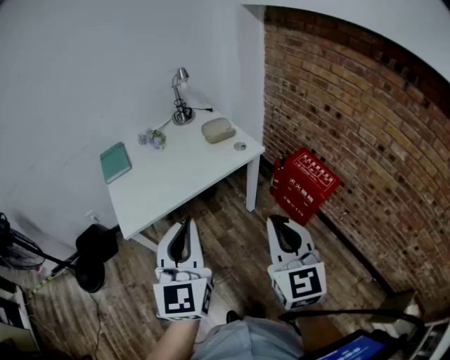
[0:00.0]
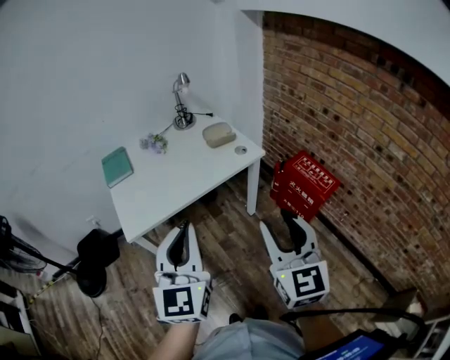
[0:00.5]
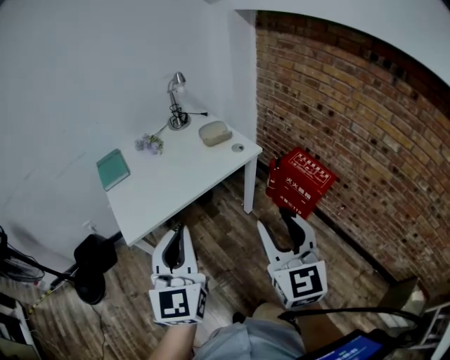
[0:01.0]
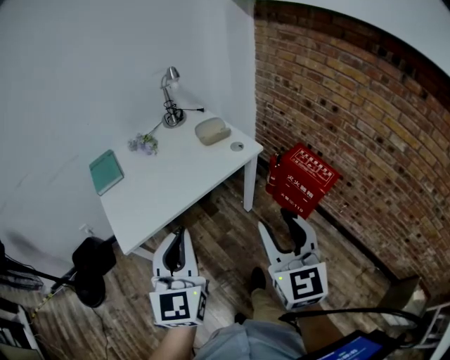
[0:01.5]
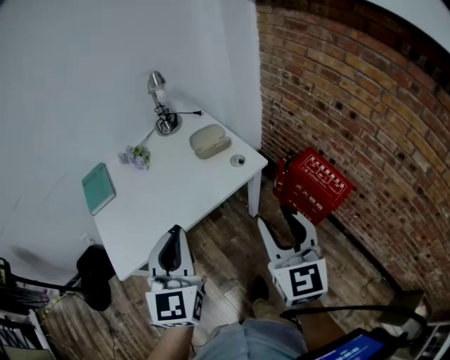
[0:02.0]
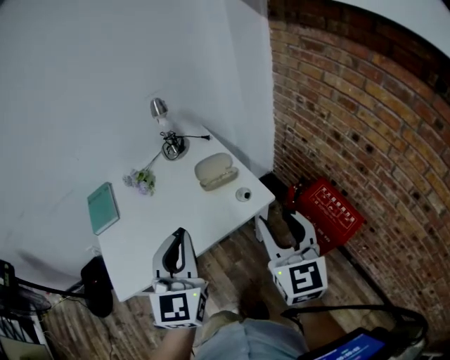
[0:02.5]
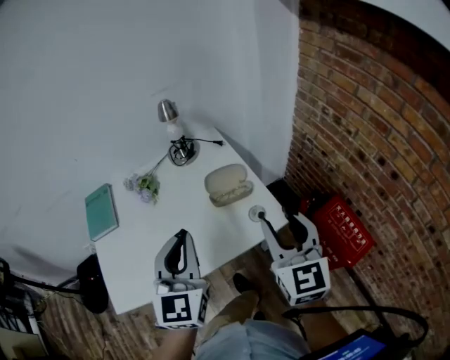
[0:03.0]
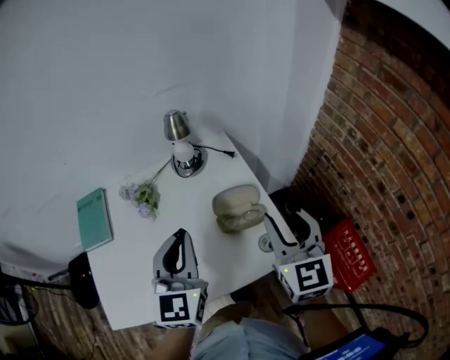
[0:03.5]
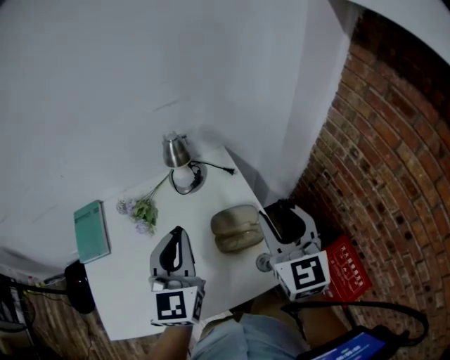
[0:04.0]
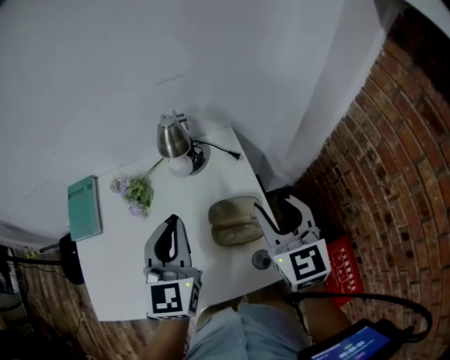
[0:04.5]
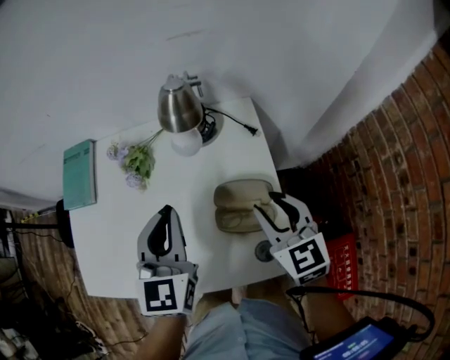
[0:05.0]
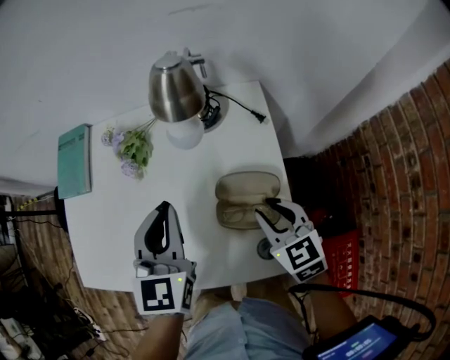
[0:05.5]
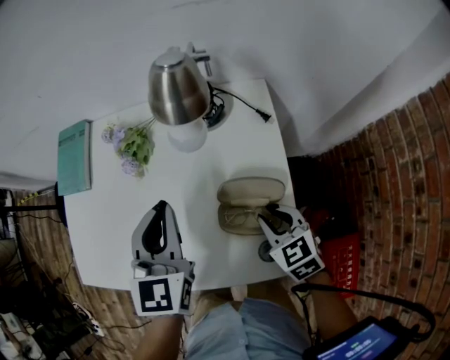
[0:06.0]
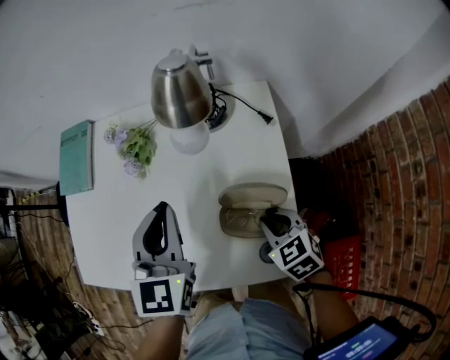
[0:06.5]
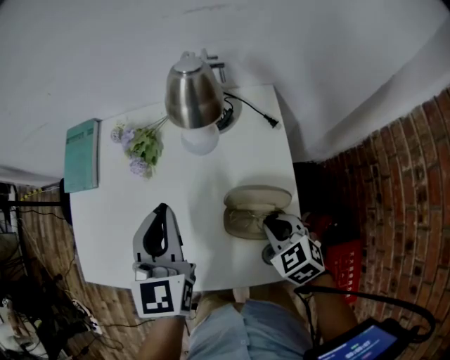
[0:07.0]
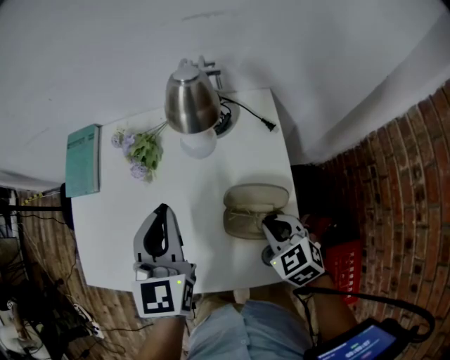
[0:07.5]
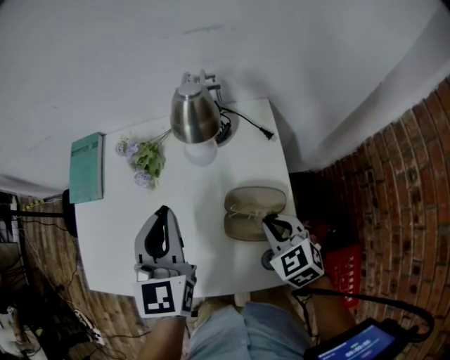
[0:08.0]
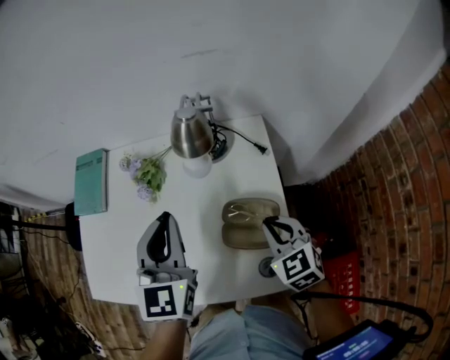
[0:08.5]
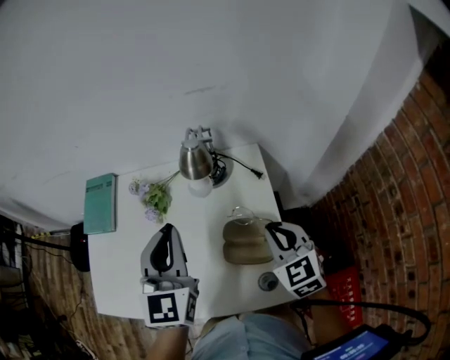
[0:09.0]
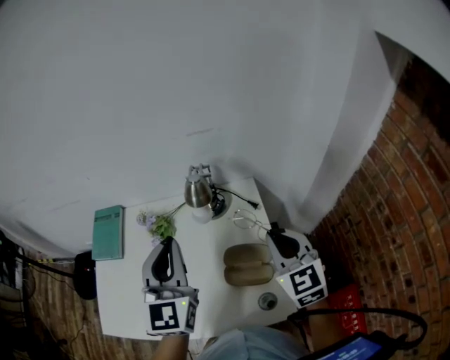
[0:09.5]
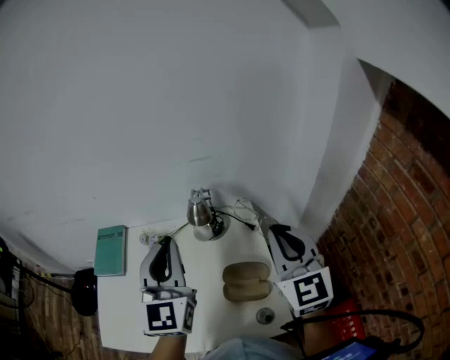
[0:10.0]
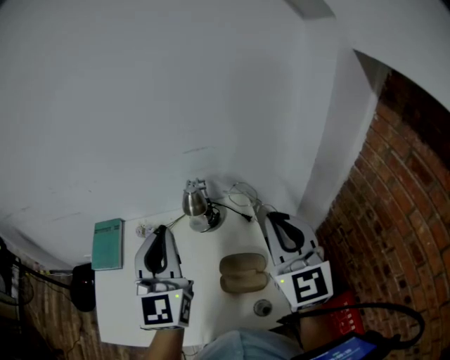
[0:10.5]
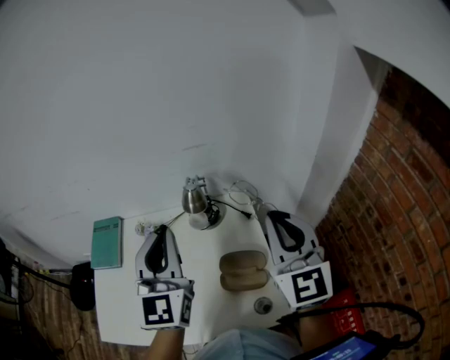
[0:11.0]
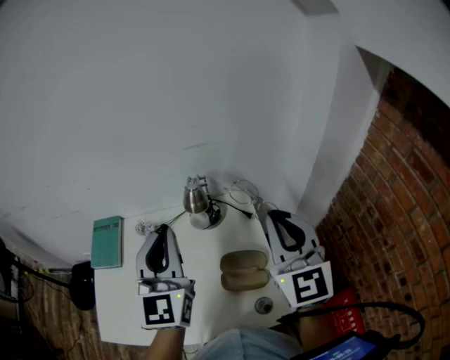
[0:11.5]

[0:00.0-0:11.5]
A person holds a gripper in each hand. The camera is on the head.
0.0 to 2.0 s: The grippers both shift forward by some 20 cm. The right gripper opens up.
2.0 to 4.0 s: Both grippers move forward, roughly 40 cm.
4.0 to 6.0 s: The right gripper travels downward by about 25 cm, angles its fingers downward, by approximately 40 degrees, and closes its fingers. The left gripper heads downward, covering some 10 cm, and swivels approximately 20 degrees.
6.0 to 7.5 s: The grippers stay close to where they were, moving slightly.
7.5 to 9.5 s: The right gripper shifts approximately 20 cm upward, and tilts its fingers about 30 degrees upward. The left gripper moves upward, approximately 15 cm.
9.5 to 11.5 s: The right gripper is displaced upward by roughly 15 cm, and turns by about 20 degrees, while the left gripper is displaced upward by some 5 cm.

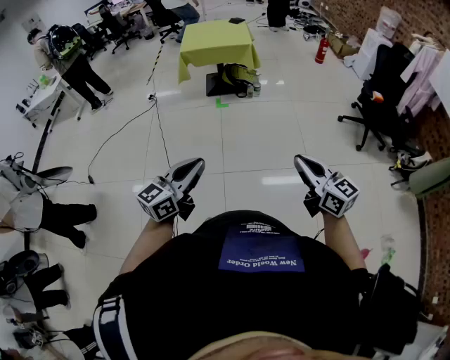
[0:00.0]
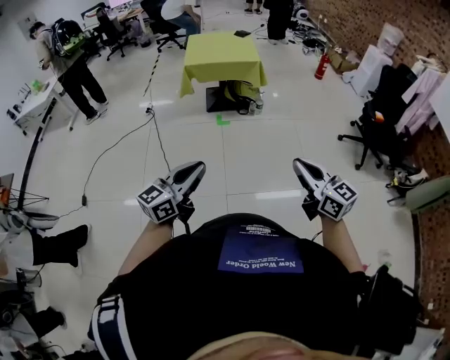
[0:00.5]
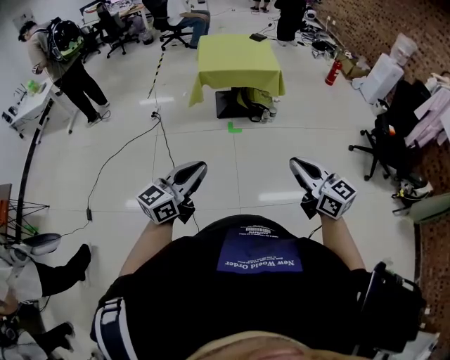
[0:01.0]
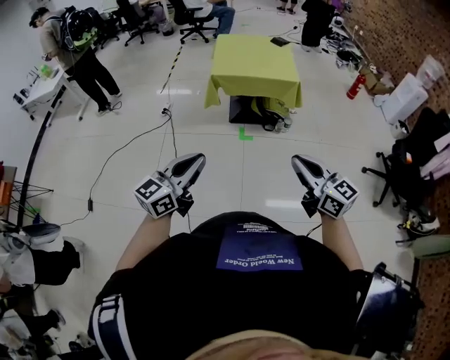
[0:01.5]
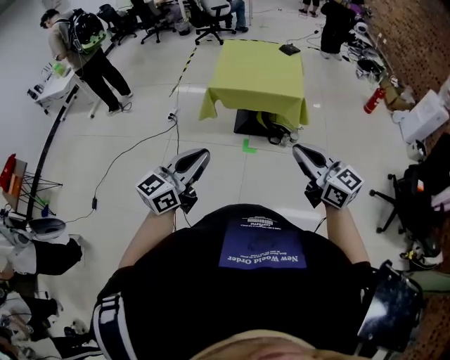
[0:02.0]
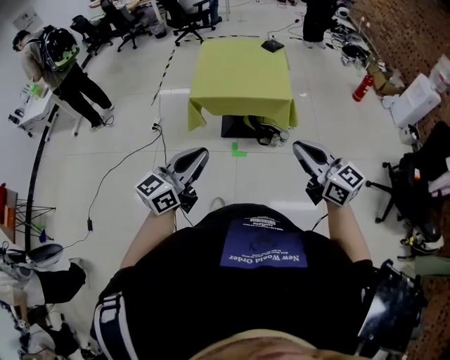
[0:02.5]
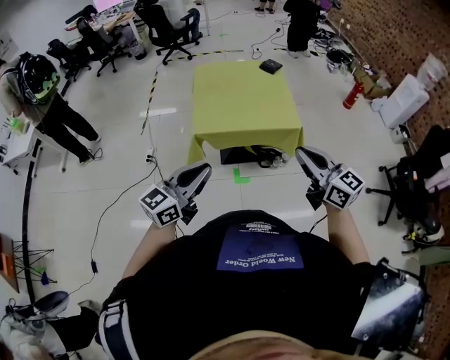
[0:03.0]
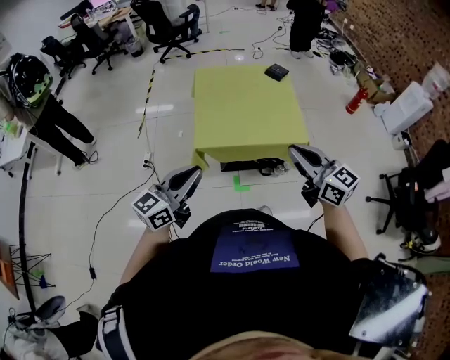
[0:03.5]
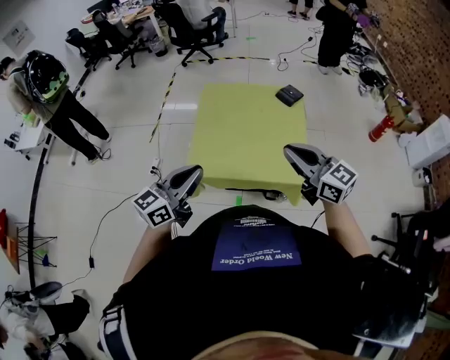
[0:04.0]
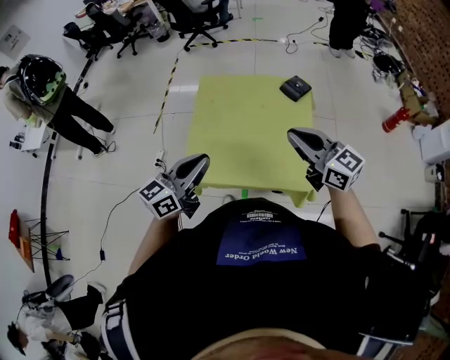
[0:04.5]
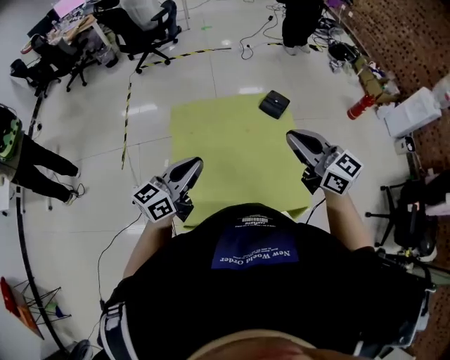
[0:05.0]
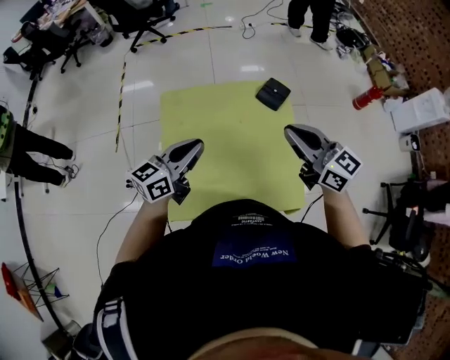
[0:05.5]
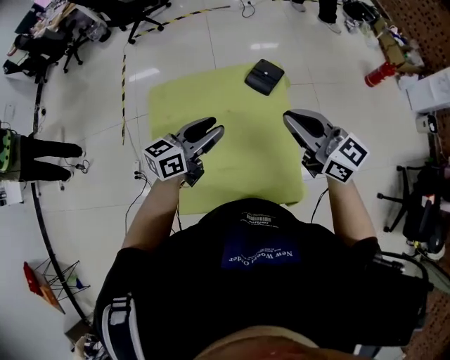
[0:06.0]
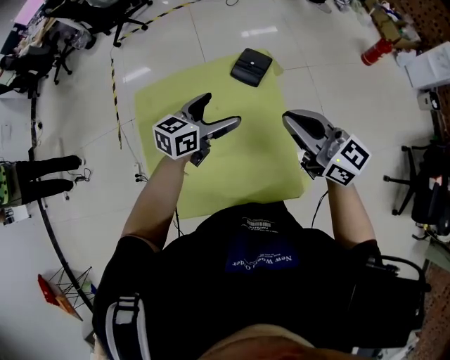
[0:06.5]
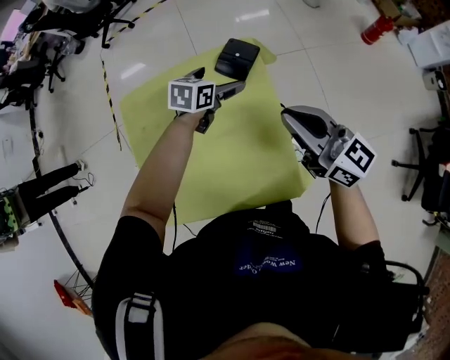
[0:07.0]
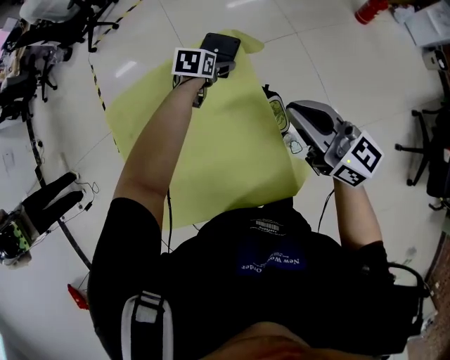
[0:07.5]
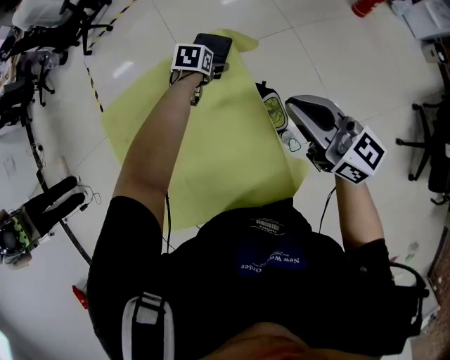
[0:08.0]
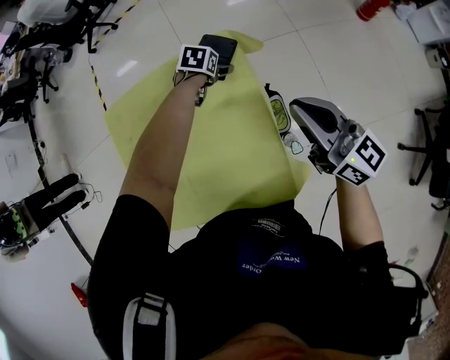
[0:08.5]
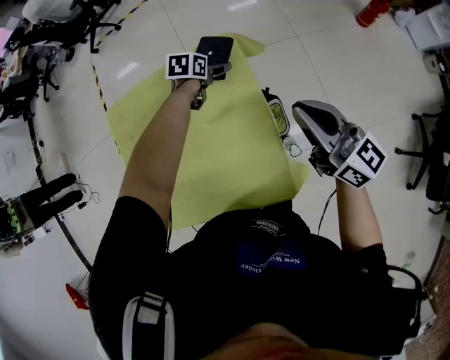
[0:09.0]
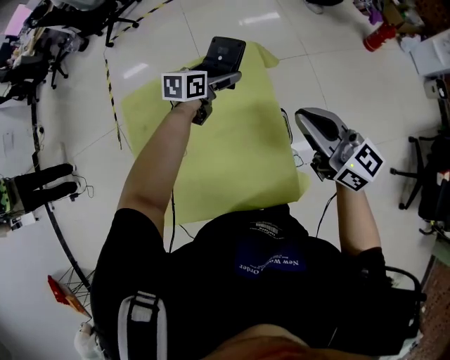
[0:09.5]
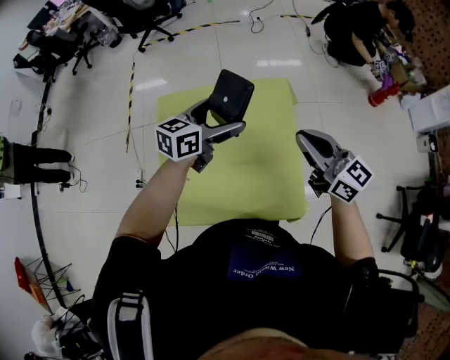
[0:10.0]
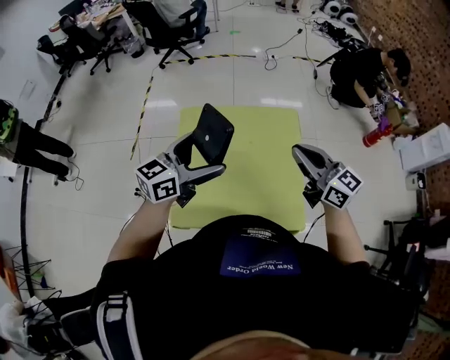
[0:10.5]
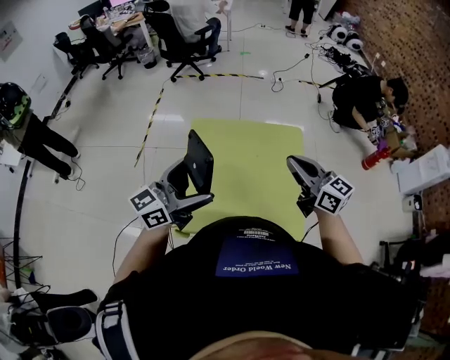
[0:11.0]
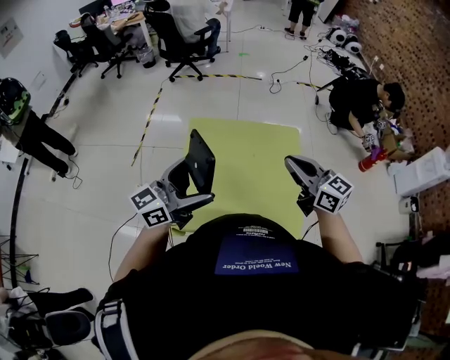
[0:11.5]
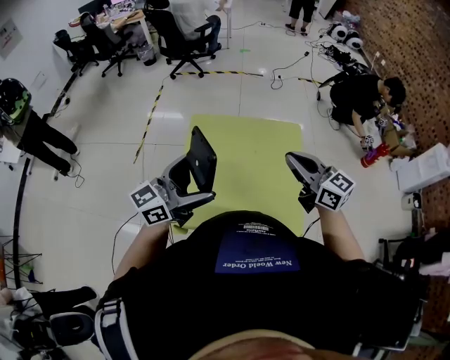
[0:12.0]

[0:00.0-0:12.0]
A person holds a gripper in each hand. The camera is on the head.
0.0 to 2.0 s: The pair of grippers is taken forward, about 60 cm.
2.0 to 4.0 s: The pair of grippers is taken forward, some 50 cm.
4.0 to 6.0 s: The two grippers go about 35 cm forward. The left gripper swivels some 20 degrees.
6.0 to 8.0 s: The right gripper is displaced to the right and downward by roughly 20 cm. Meanwhile the left gripper shifts roughly 40 cm downward, forward and to the right, angles its fingers downward, by some 60 degrees, and opens up.
8.0 to 10.0 s: The left gripper moves upward, backward and to the left, approximately 35 cm, and tips its fingers upward by some 50 degrees. The right gripper goes roughly 15 cm to the left and upward.
10.0 to 12.0 s: The left gripper goes about 35 cm backward, to the left and upward, and swivels roughly 30 degrees. The right gripper shifts roughly 15 cm to the left and upward.

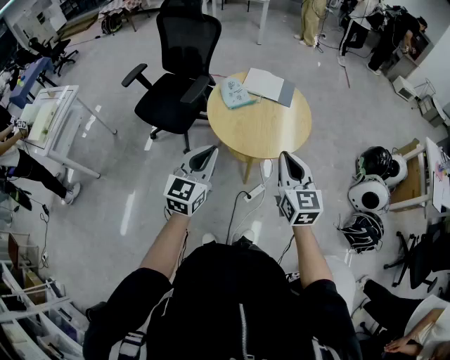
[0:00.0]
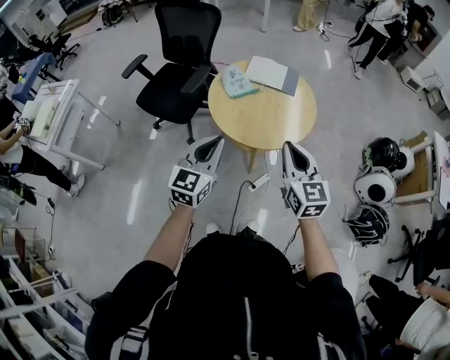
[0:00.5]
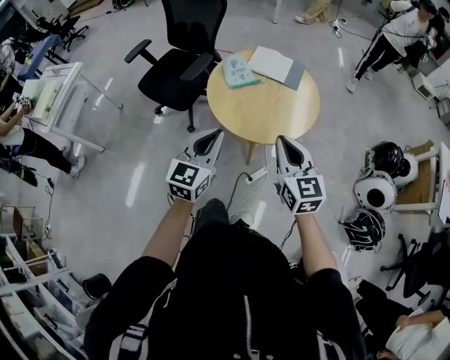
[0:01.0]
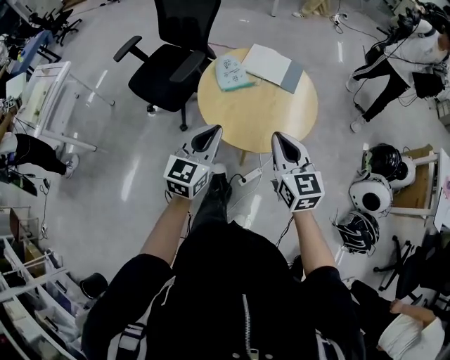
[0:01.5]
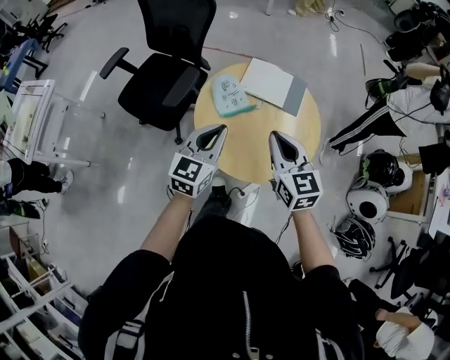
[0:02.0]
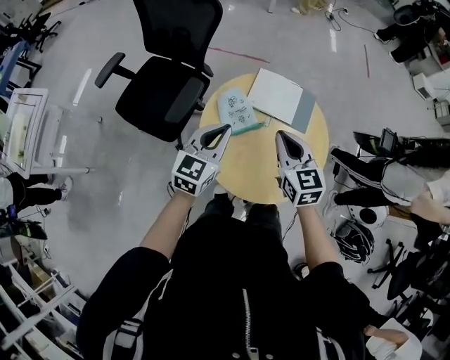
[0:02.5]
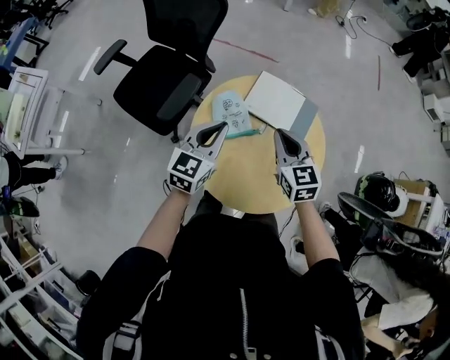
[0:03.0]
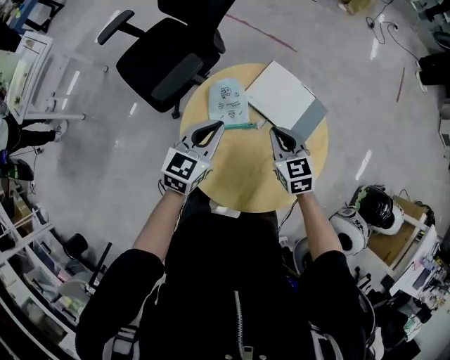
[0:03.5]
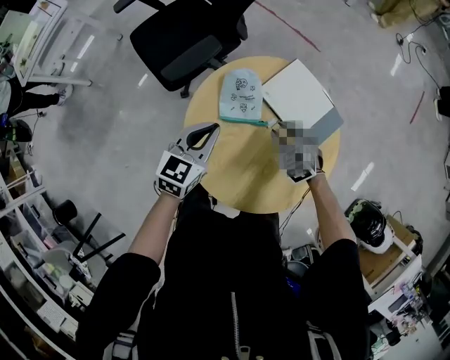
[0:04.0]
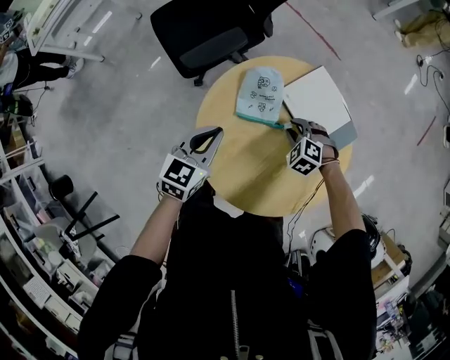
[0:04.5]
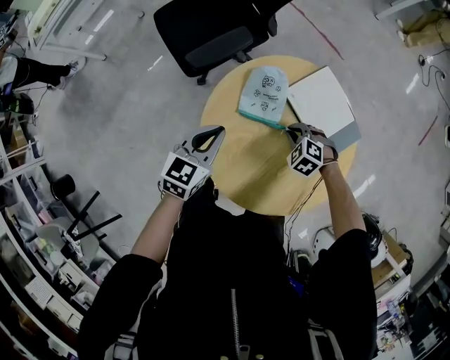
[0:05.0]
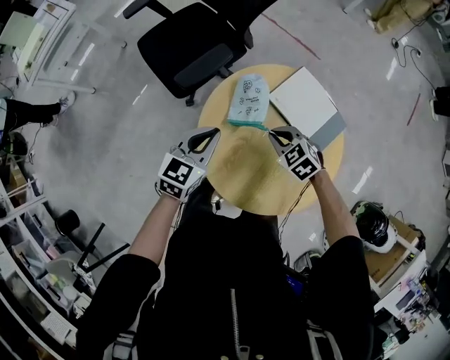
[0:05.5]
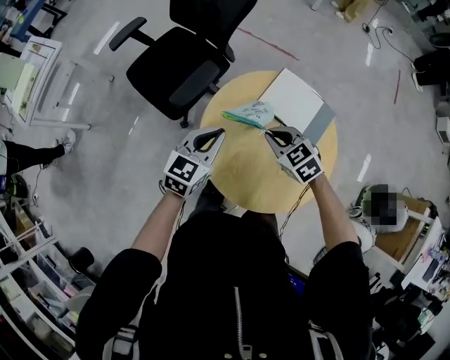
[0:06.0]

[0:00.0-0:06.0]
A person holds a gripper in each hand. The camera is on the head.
0.0 to 2.0 s: The grippers both shift forward by roughly 30 cm.
2.0 to 4.0 s: The right gripper goes roughly 25 cm downward, tips its fingers downward by approximately 40 degrees, and opens its fingers, while the left gripper shifts by about 20 cm, and changes its angle by about 30 degrees.
4.0 to 6.0 s: The right gripper goes approximately 15 cm upward and to the left, and closes; the left gripper travels upward by approximately 5 cm.
